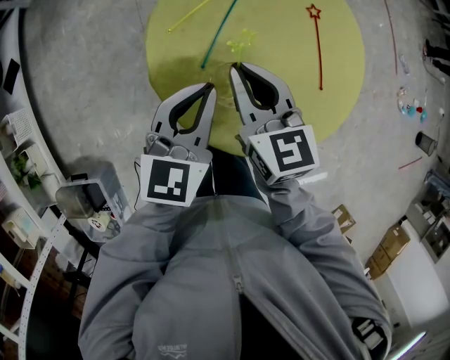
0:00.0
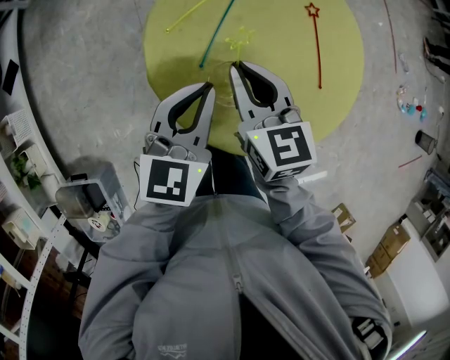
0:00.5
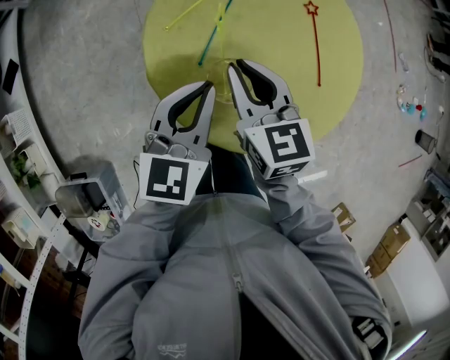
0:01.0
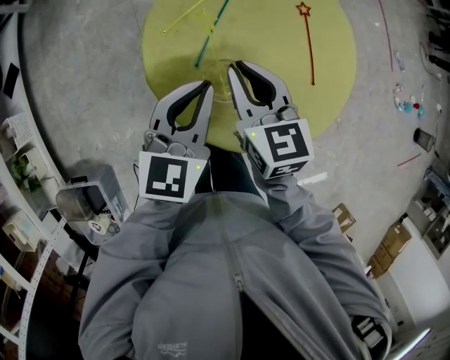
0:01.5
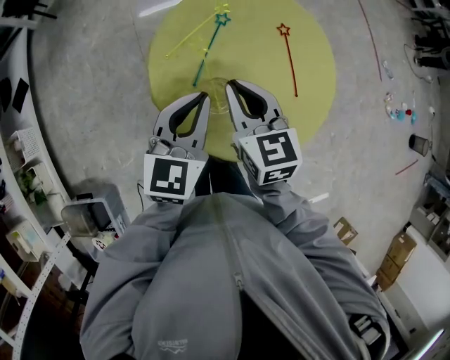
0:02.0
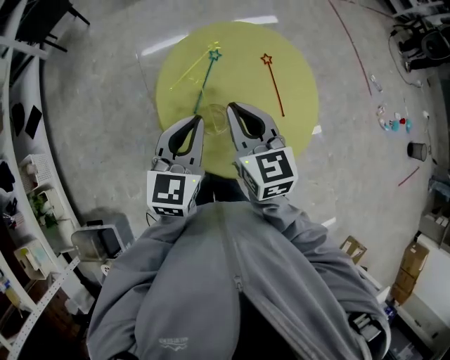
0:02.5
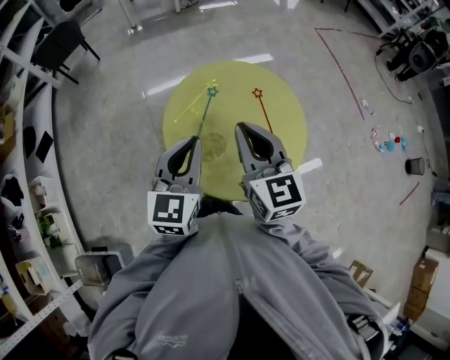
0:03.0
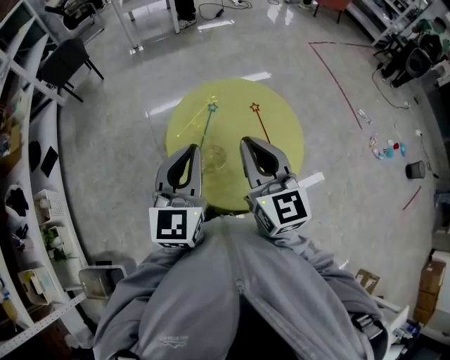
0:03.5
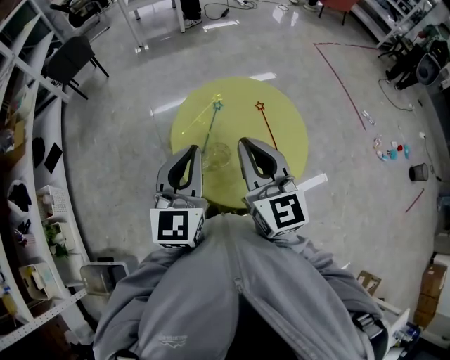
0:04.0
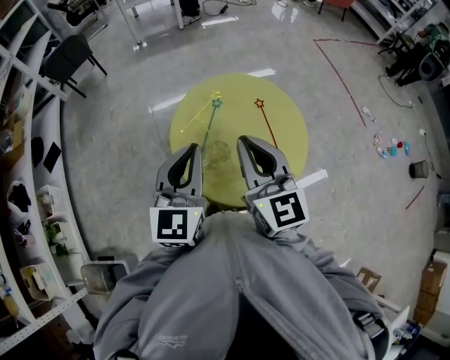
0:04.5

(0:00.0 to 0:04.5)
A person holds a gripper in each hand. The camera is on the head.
0:00.0 - 0:02.0: Both grippers move upward, roughly 5 cm.
0:02.0 - 0:04.5: Both grippers move upward, some 25 cm. The right gripper changes its angle by approximately 30 degrees.

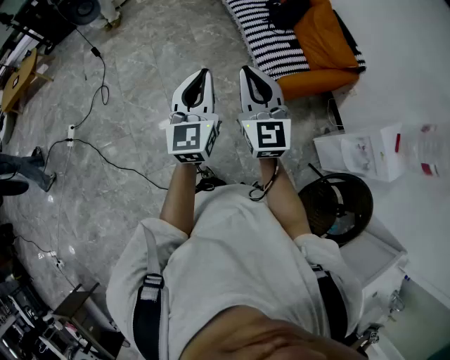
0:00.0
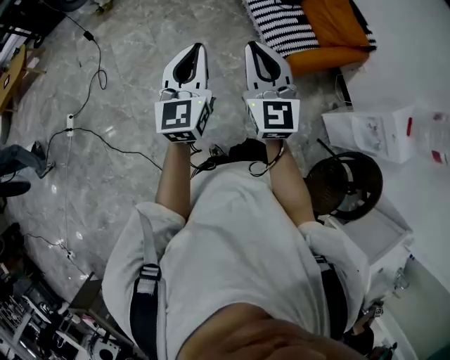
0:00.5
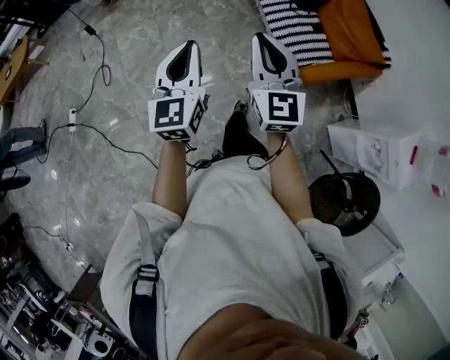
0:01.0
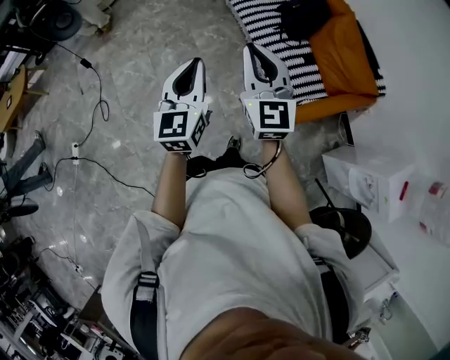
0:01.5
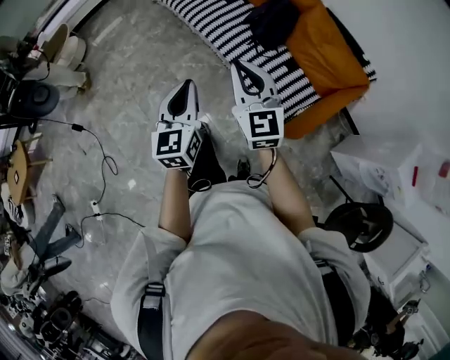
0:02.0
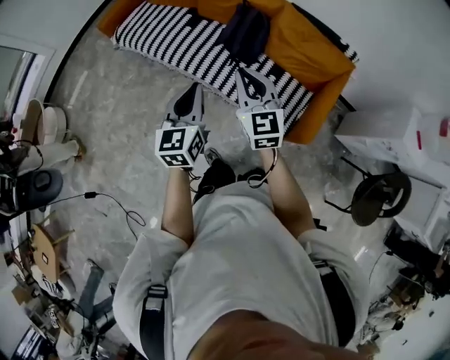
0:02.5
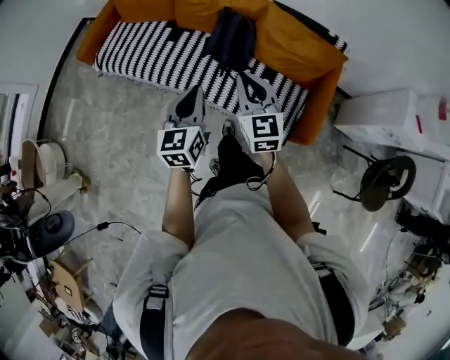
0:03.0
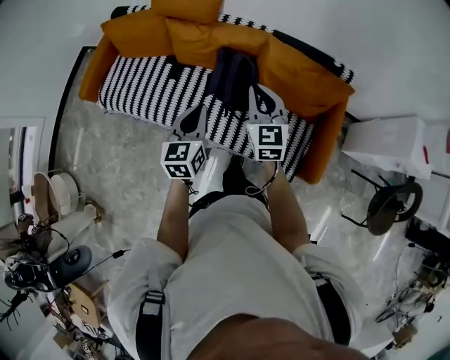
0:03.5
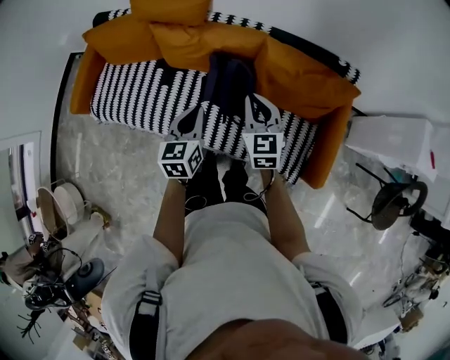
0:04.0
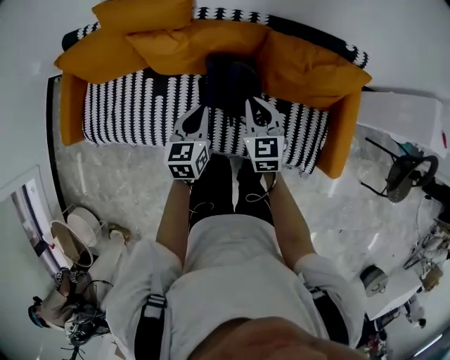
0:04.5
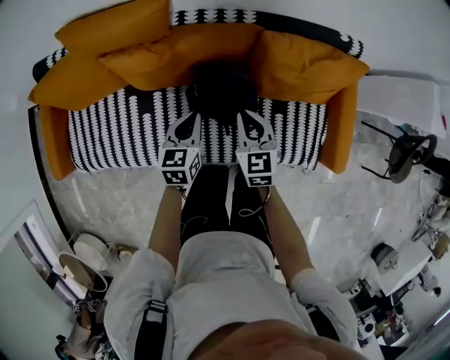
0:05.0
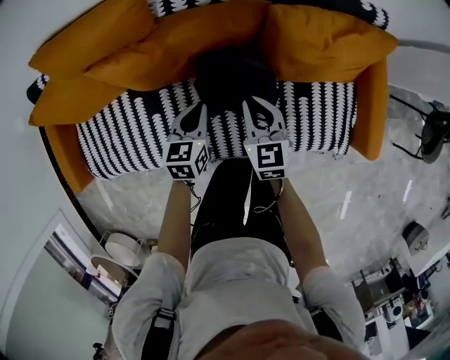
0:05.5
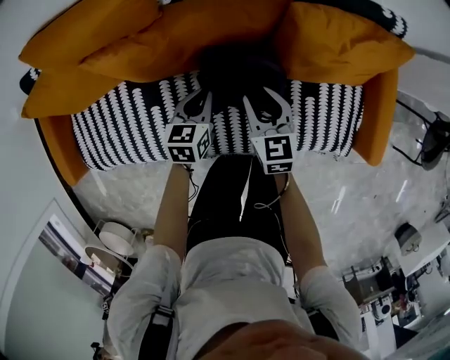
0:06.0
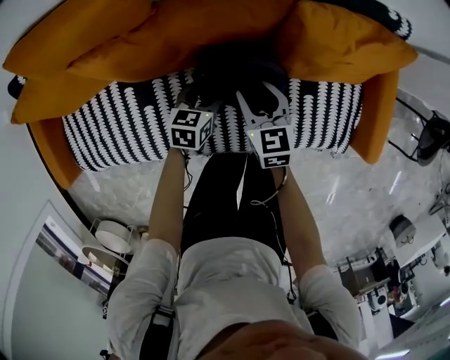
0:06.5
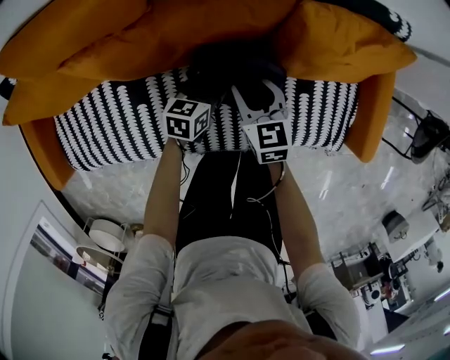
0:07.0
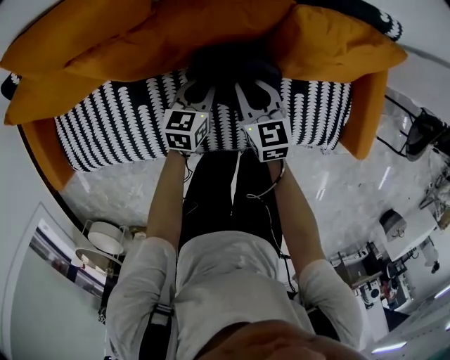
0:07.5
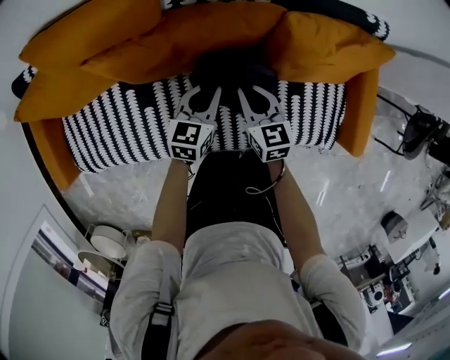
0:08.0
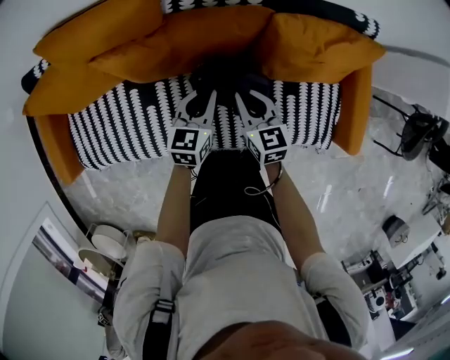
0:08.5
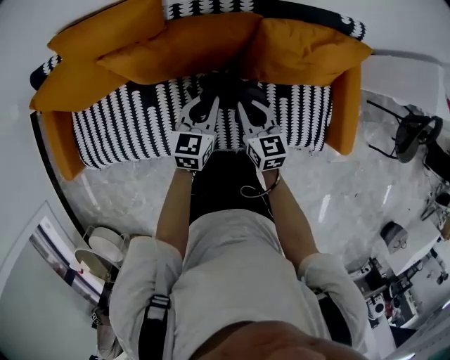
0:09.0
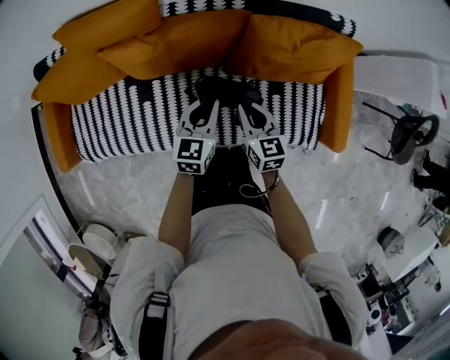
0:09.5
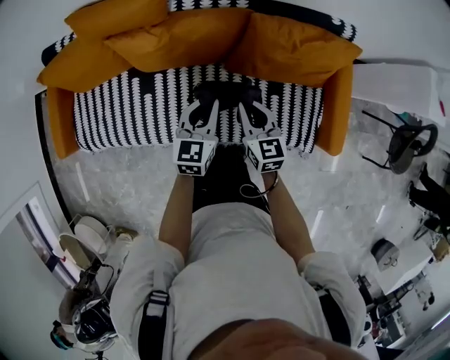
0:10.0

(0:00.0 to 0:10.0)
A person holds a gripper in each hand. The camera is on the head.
0:00.0 - 0:02.0: The pair of grippers is taken forward, some 50 cm.
0:02.0 - 0:04.0: The two grippers travel together, about 50 cm. The left gripper changes its angle by about 50 degrees. The right gripper swivels about 50 degrees.
0:04.0 - 0:06.0: The right gripper shifts about 25 cm downward, turns by about 20 degrees, and opens up. Meanwhile the left gripper shifts some 35 cm downward and forward, and rotates roughly 30 degrees.
0:06.0 - 0:08.0: The left gripper moves upward, roughly 5 cm, and opens and closes again, while the right gripper closes.
0:08.0 - 0:10.0: The right gripper travels upward, backward and to the right by approximately 20 cm. Meanwhile the left gripper travels upward and backward by about 20 cm.

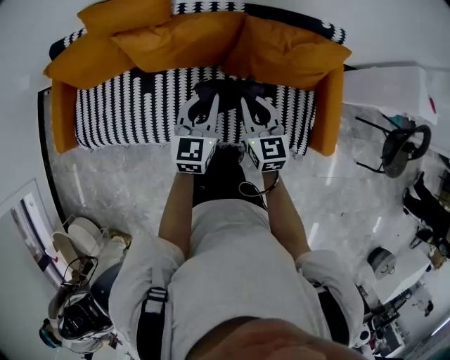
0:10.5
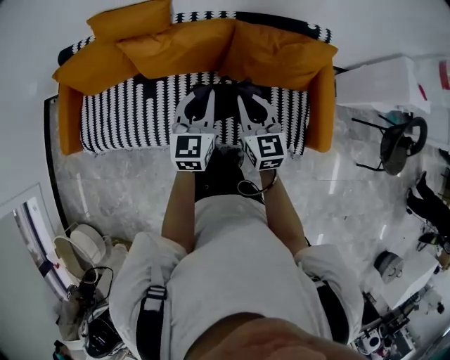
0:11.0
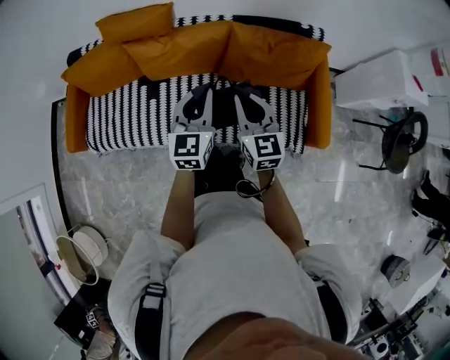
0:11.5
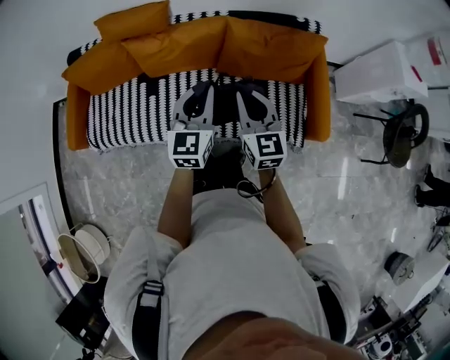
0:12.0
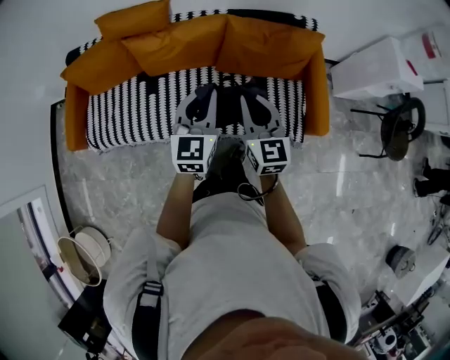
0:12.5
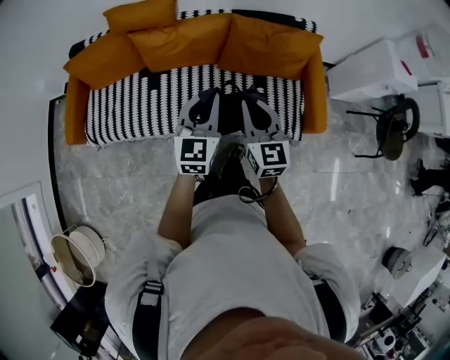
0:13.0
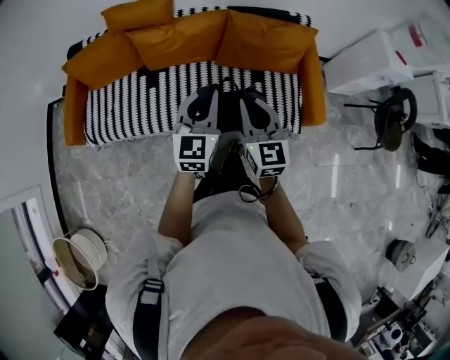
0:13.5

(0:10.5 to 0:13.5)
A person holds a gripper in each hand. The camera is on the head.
0:10.5 - 0:12.0: The grippers both shift upward and backward by some 15 cm.
0:12.0 - 0:13.5: Both grippers move backward, about 10 cm.

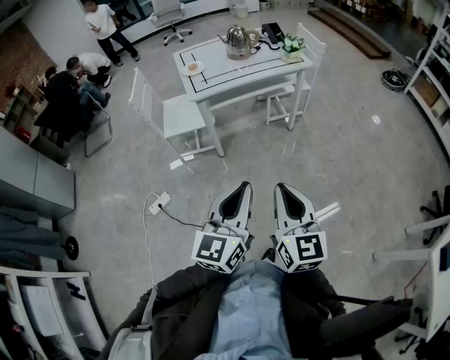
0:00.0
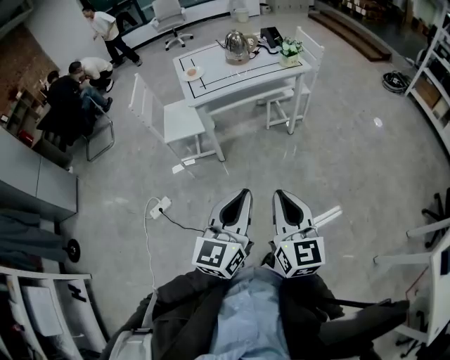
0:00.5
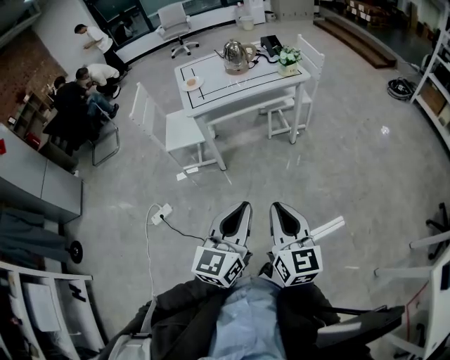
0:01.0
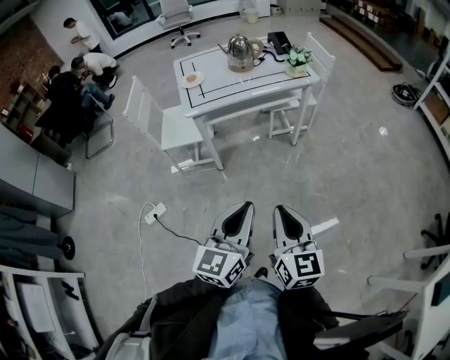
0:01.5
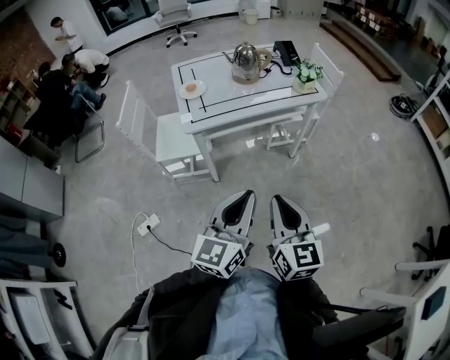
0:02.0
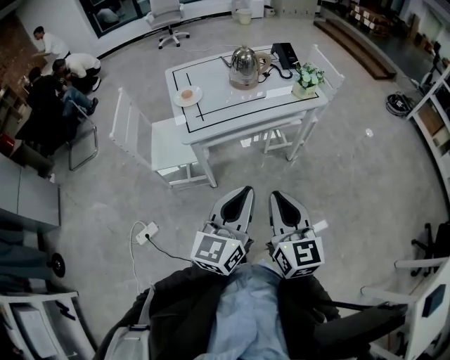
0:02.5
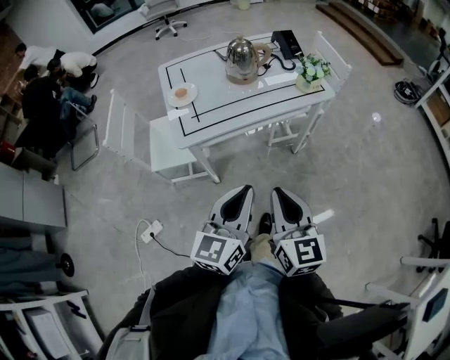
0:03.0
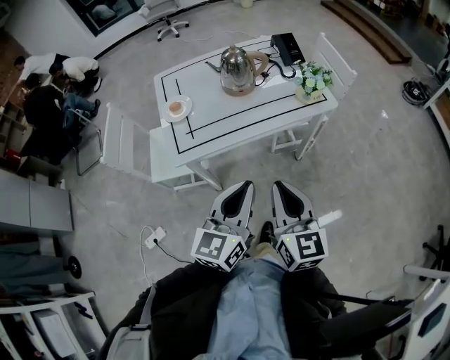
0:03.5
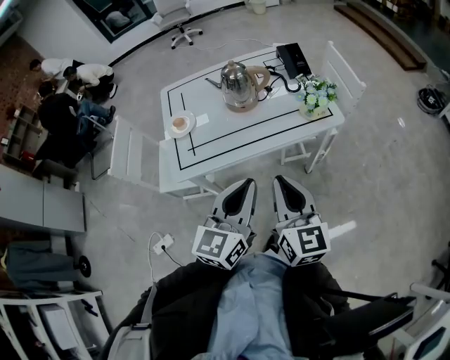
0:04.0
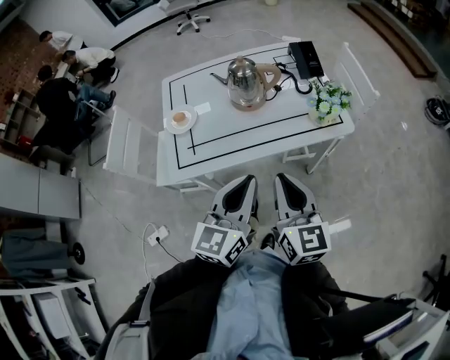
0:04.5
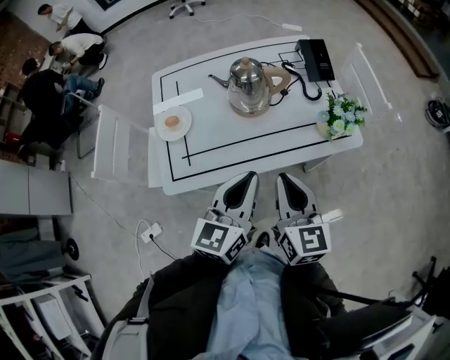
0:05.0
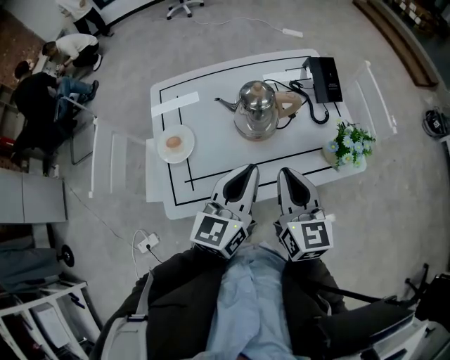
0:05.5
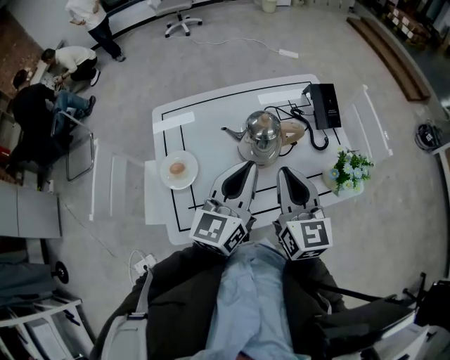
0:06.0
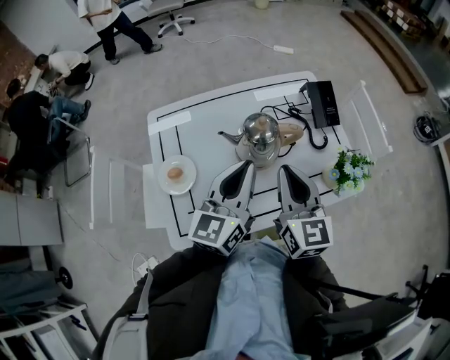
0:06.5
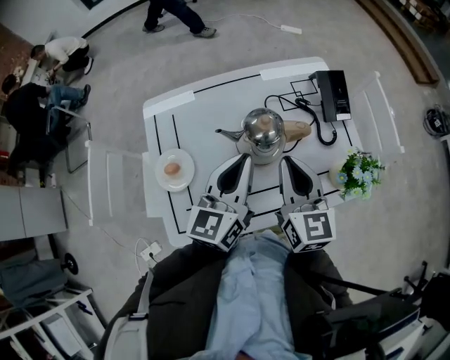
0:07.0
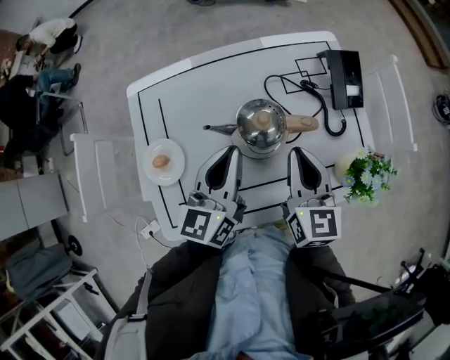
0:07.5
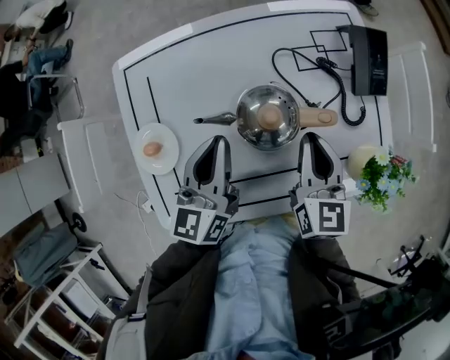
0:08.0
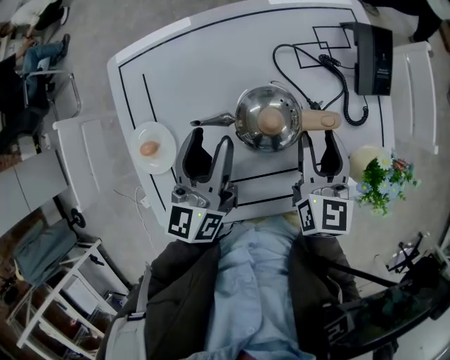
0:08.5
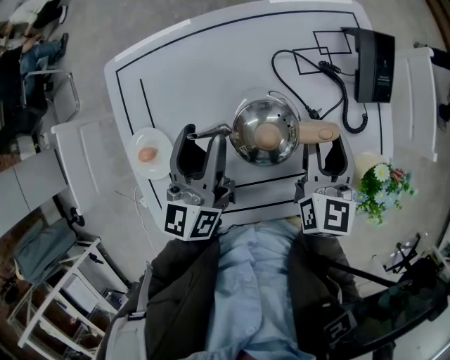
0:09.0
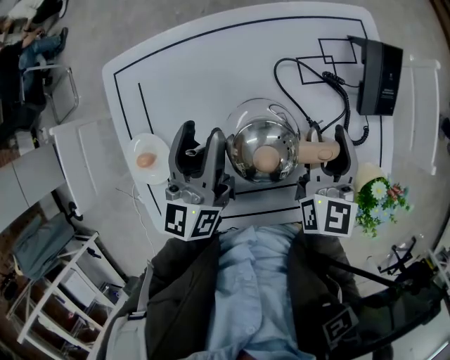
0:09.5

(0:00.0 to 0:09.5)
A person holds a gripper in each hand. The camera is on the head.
0:00.0 - 0:02.0: The grippers both shift forward by about 20 cm.
0:02.0 - 0:04.0: Both grippers travel together forward, some 30 cm.
0:04.0 - 0:05.5: The grippers both shift forward by roughly 25 cm.
0:05.5 - 0:07.5: The two grippers go approximately 15 cm forward.
0:07.5 - 0:09.5: The right gripper goes some 10 cm forward and downward, and opens up. Meanwhile the left gripper heads forward and to the left, covering roughly 10 cm, and opens.
